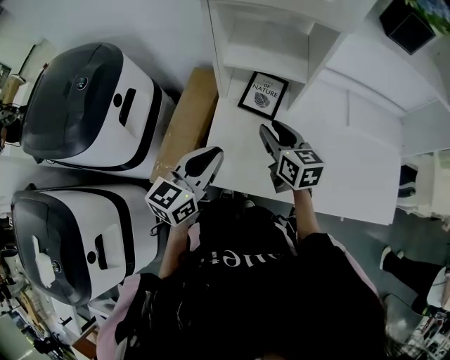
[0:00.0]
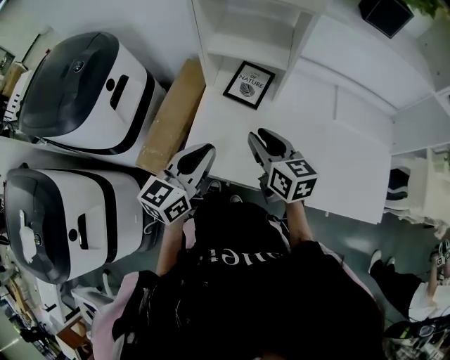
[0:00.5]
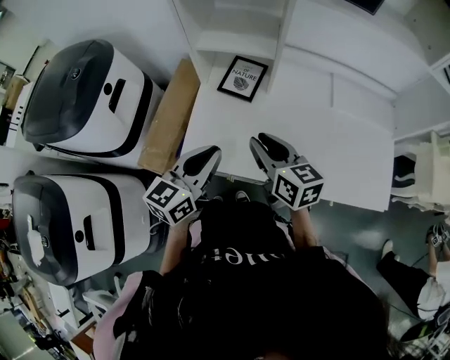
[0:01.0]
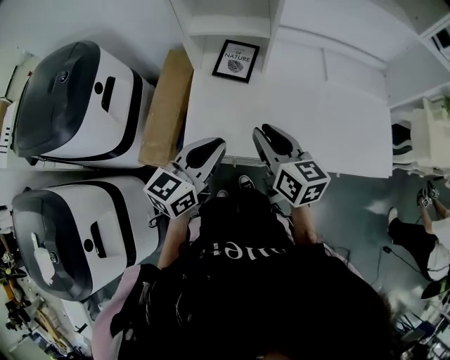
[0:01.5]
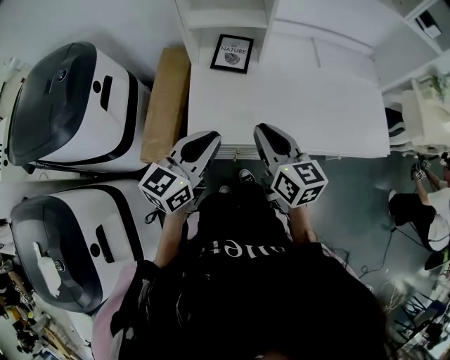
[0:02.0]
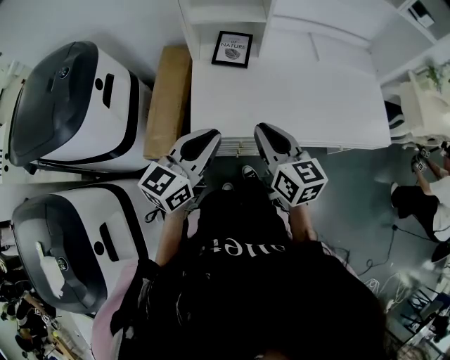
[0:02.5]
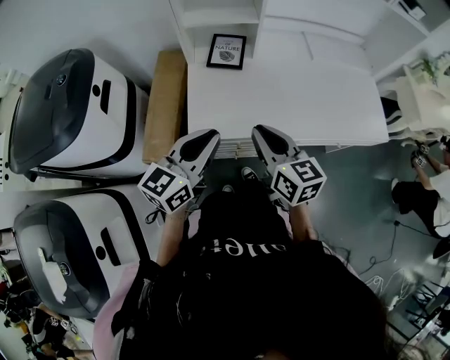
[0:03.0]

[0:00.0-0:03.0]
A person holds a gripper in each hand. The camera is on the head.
0:00.0 to 0:01.5: The right gripper goes approximately 15 cm backward; the left gripper heads backward and to the right, covering approximately 15 cm.
0:01.5 to 0:03.0: The grippers both shift backward by approximately 10 cm.

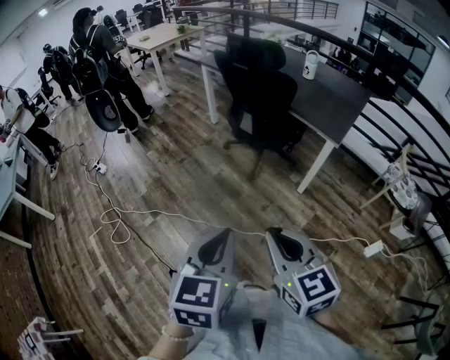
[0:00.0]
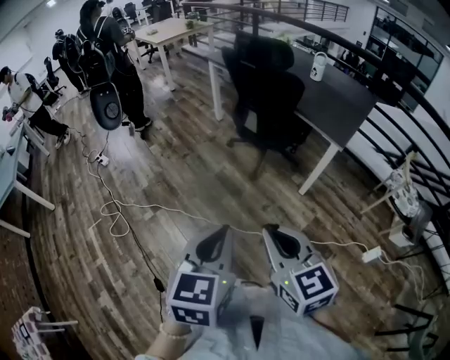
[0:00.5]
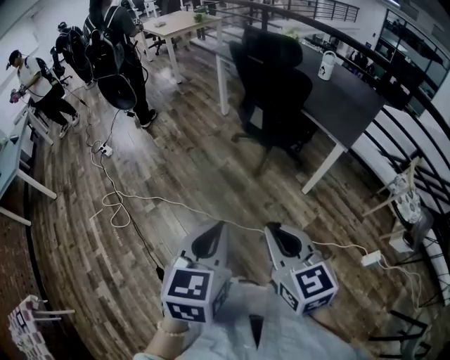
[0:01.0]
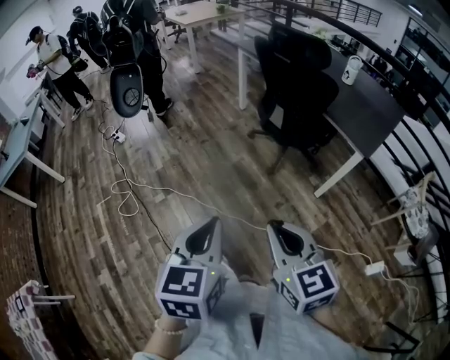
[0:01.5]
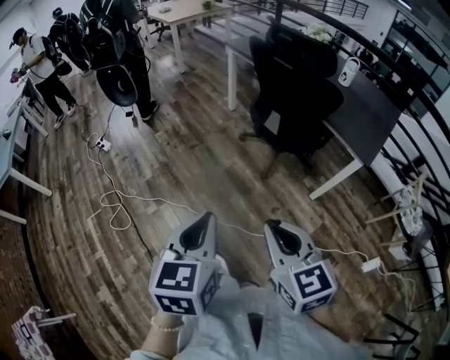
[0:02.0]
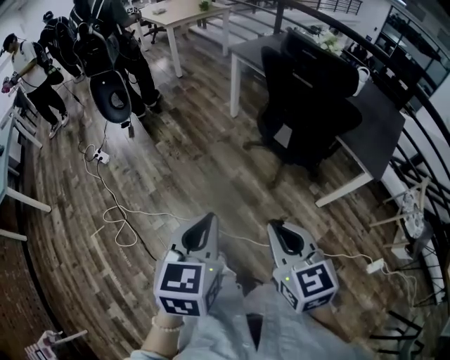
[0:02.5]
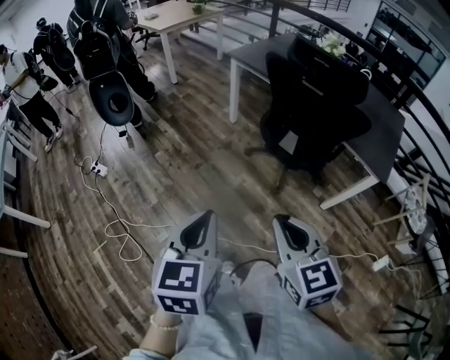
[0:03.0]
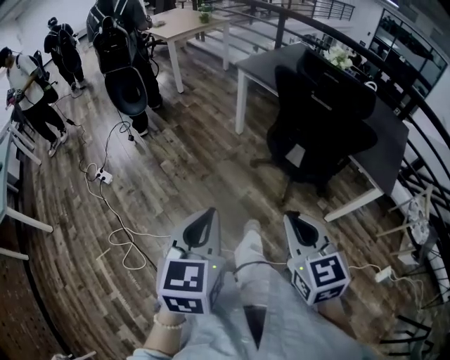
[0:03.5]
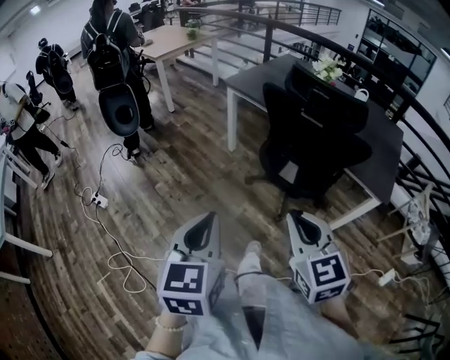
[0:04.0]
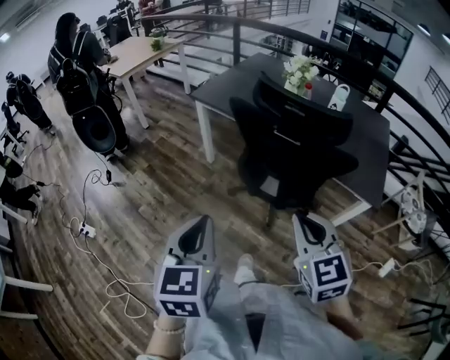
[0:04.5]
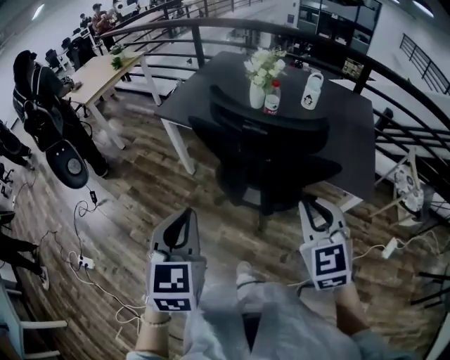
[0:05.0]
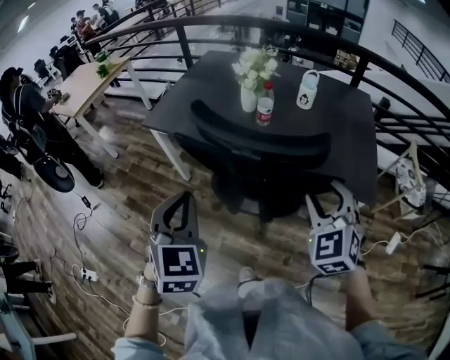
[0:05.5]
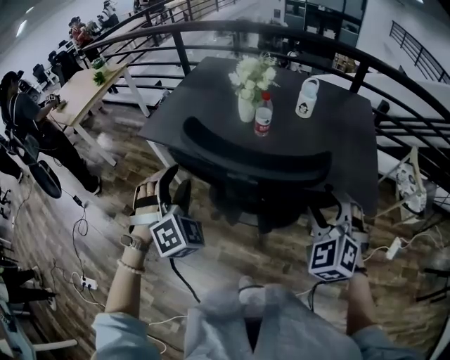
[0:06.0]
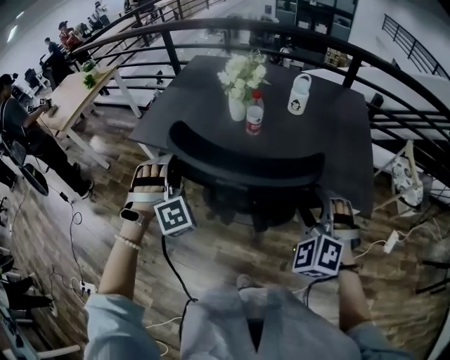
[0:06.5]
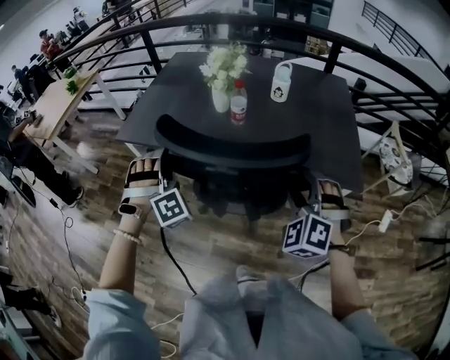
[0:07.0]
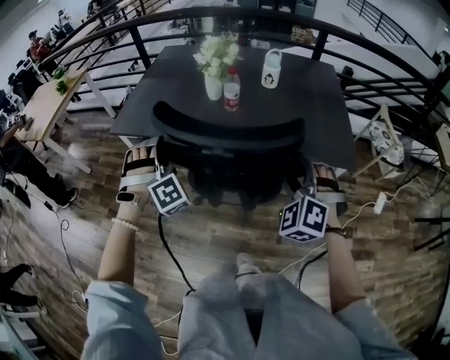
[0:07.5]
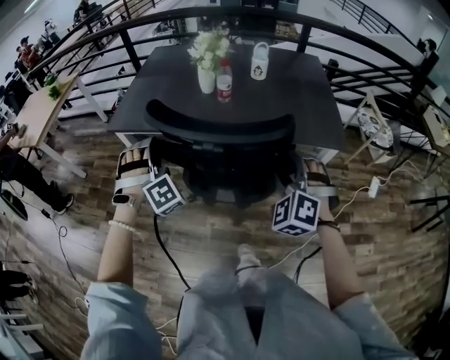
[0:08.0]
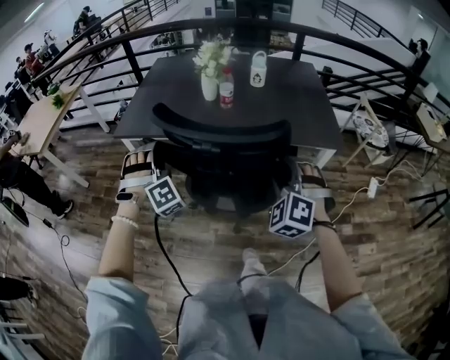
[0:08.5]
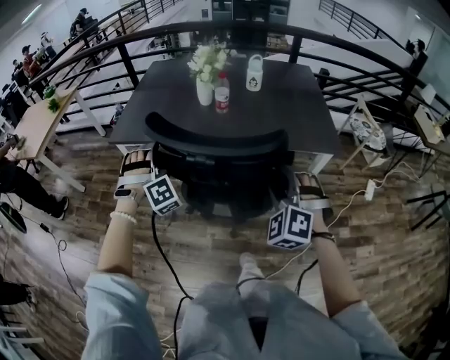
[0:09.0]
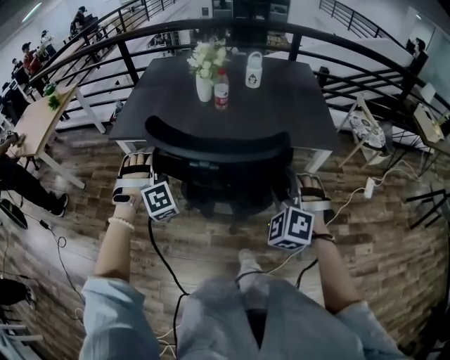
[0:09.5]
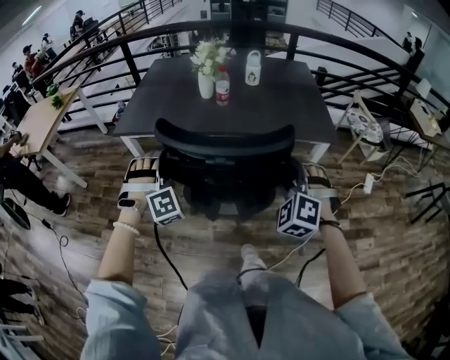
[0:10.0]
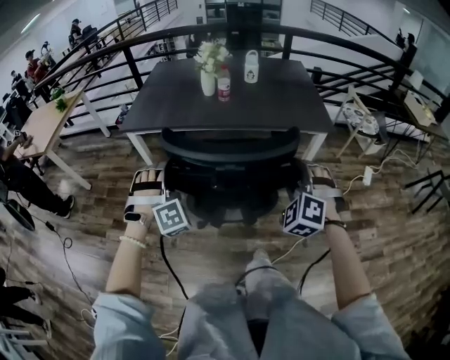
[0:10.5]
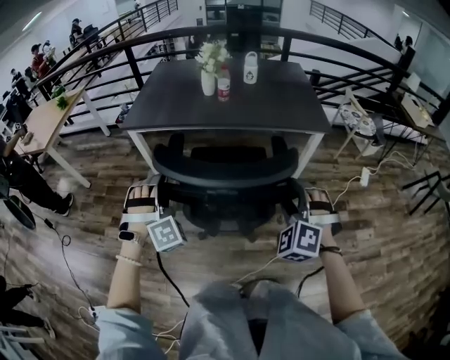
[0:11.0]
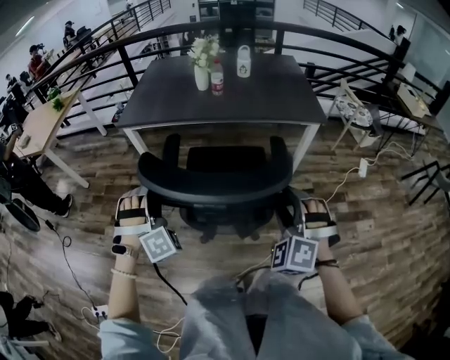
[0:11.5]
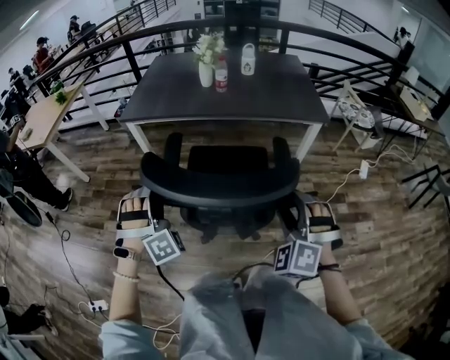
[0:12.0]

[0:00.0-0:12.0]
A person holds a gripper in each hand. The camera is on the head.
0:00.0 to 0:02.0: The two grippers go roughly 20 cm forward and to the left.
0:02.0 to 0:04.0: The left gripper goes about 30 cm forward and to the left; the right gripper goes about 30 cm forward.
0:04.0 to 0:06.0: Both grippers are carried forward and to the right, approximately 40 cm. The right gripper rotates approximately 50 degrees, and opens; the left gripper rotates around the line of its fingers by roughly 80 degrees, clockwise from behind, and opens its fingers.
0:06.0 to 0:08.0: The left gripper rotates approximately 20 degrees, while the right gripper moves backward and to the left, about 10 cm.
0:08.0 to 0:10.0: The grippers both shift backward by about 10 cm.
0:10.0 to 0:12.0: The grippers both shift backward by about 20 cm.

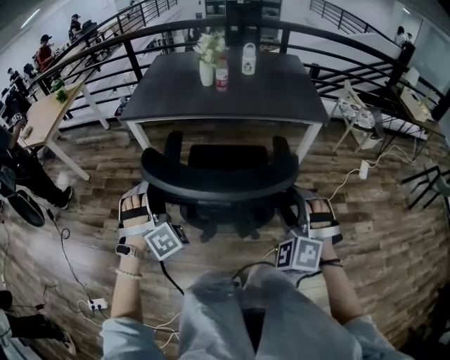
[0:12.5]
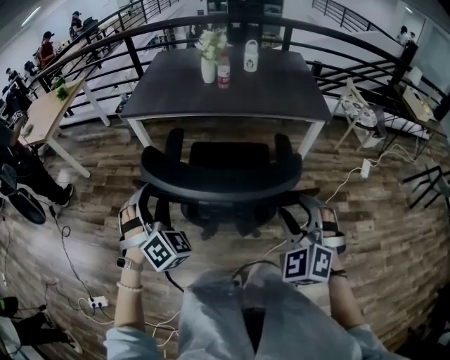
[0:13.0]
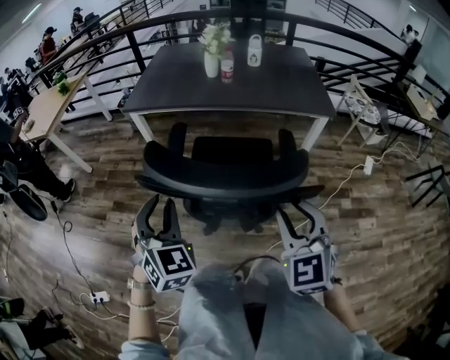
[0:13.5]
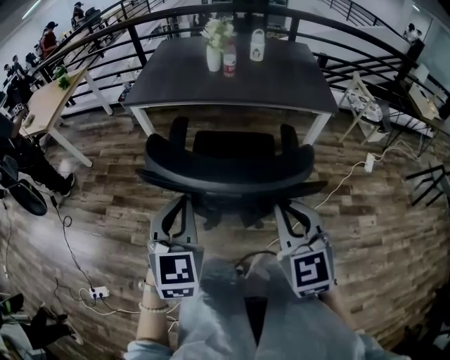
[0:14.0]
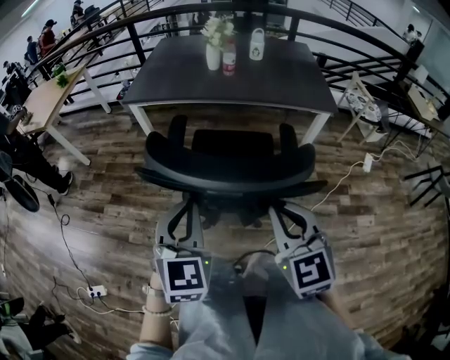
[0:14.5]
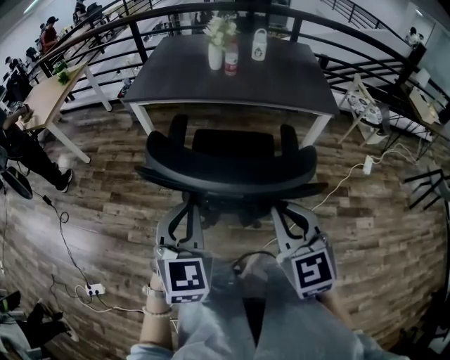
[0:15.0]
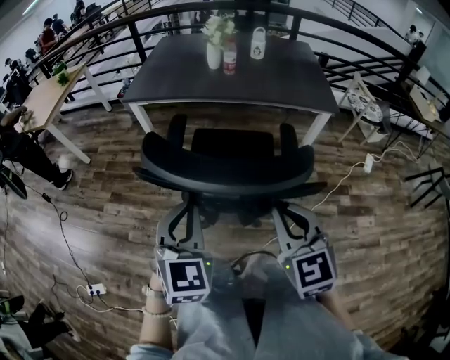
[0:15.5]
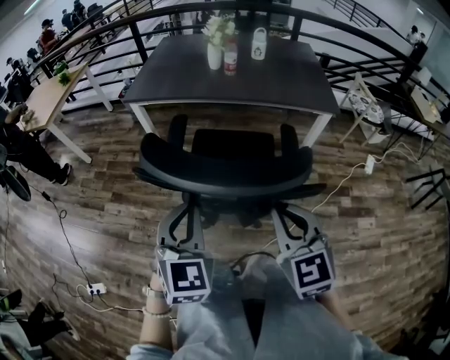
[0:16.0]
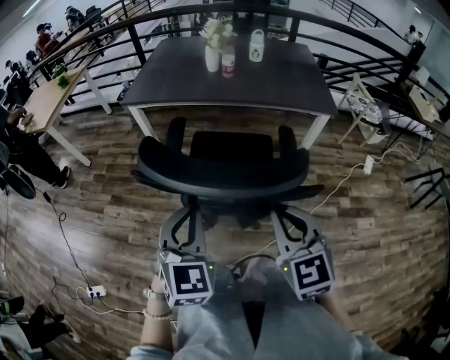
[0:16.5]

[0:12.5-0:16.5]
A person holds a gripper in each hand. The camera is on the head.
0:12.5 to 0:14.5: The left gripper heads backward, to the right and upward, covering approximately 15 cm, twists about 60 degrees counterclockwise, seen from behind, and closes. The right gripper goes some 5 cm to the left, rolls clockwise, seen from behind, by some 50 degrees, and closes its fingers.
0:14.5 to 0:16.5: The grippers make only small movements.

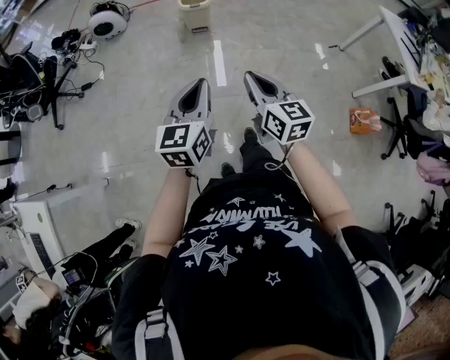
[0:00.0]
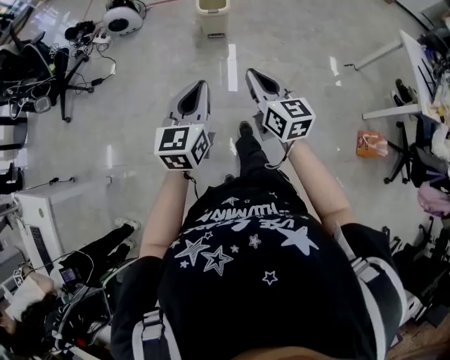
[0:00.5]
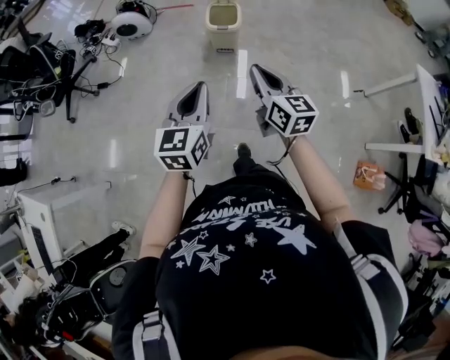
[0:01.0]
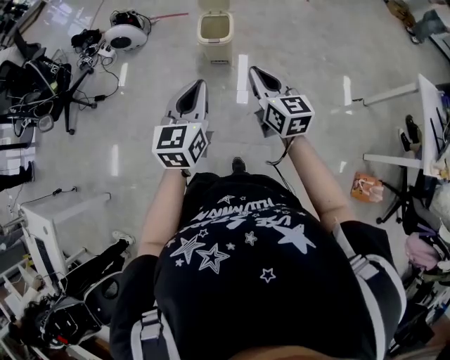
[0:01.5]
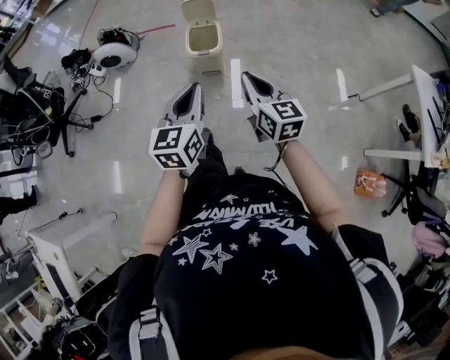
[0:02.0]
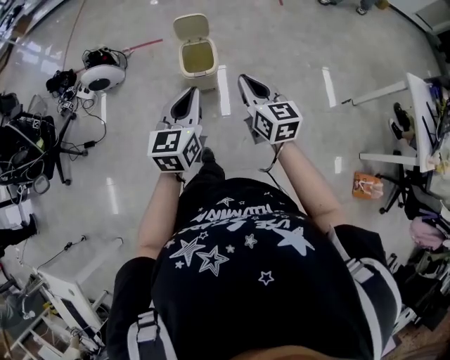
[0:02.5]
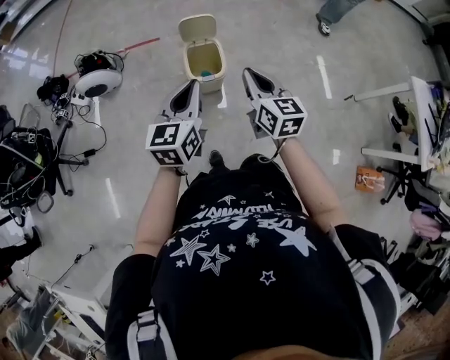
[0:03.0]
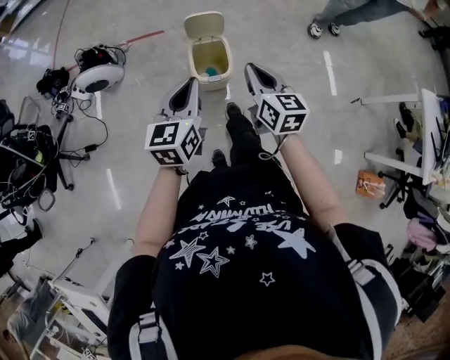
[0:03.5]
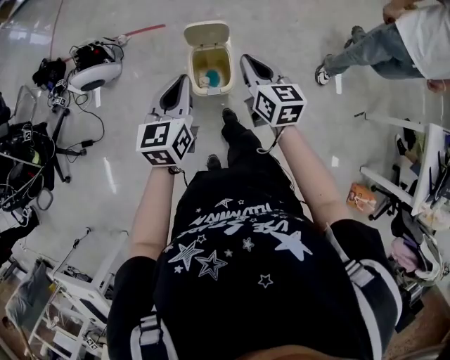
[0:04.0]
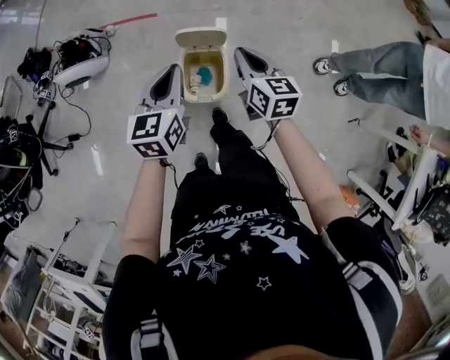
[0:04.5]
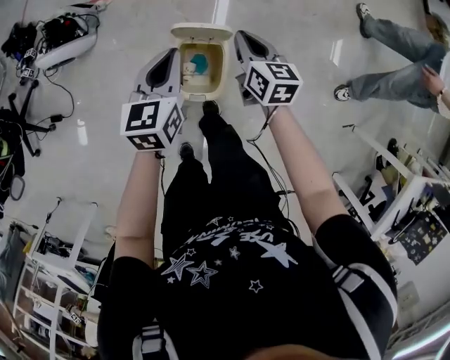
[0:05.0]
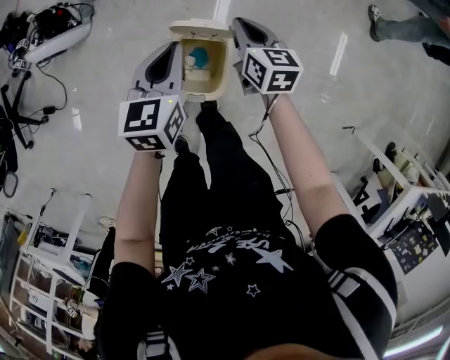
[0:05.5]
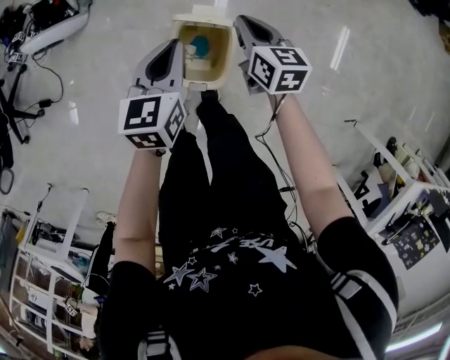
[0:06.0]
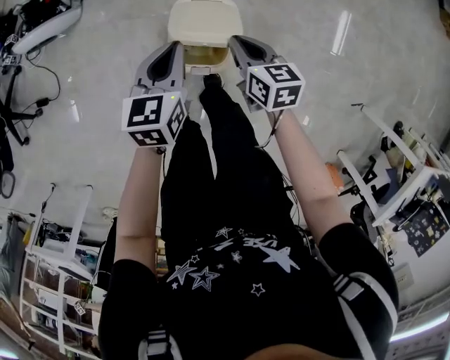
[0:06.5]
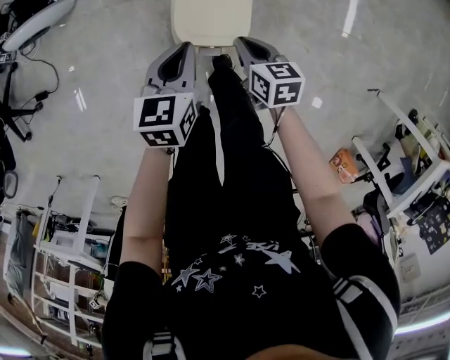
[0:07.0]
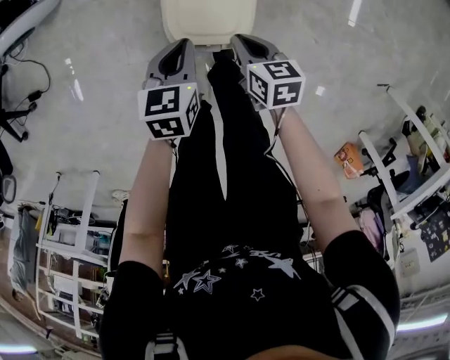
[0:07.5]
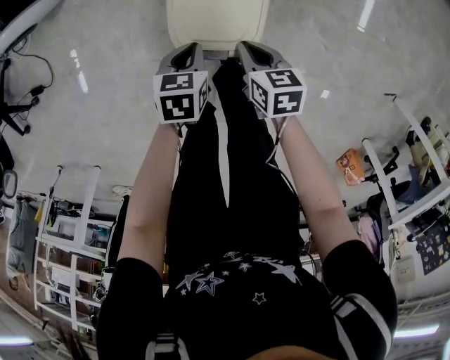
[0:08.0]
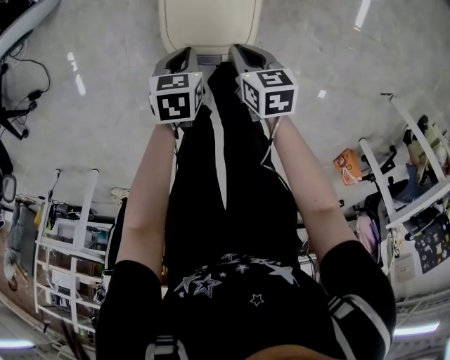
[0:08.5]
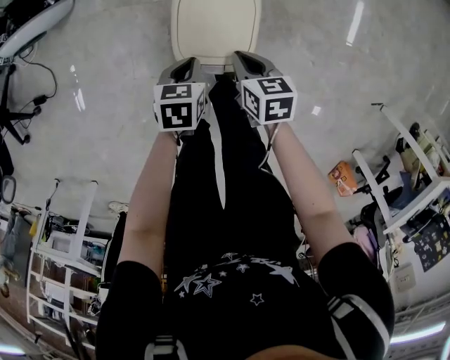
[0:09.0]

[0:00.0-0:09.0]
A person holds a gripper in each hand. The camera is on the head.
0:00.0 to 0:02.0: The grippers both shift forward by about 35 cm.
0:02.0 to 0:04.5: The pair of grippers is taken forward, about 50 cm.
0:04.5 to 0:07.0: The two grippers go roughly 25 cm downward. The right gripper rotates some 30 degrees.
0:07.0 to 0:09.0: The left gripper heads downward, covering some 15 cm, and turns by some 20 degrees.
